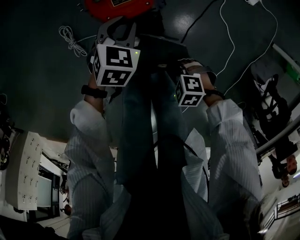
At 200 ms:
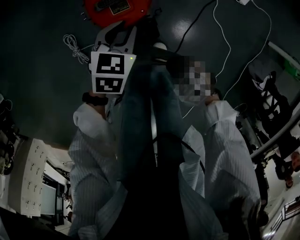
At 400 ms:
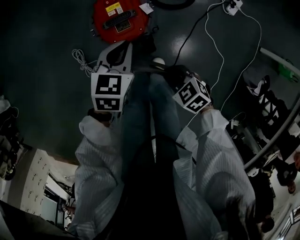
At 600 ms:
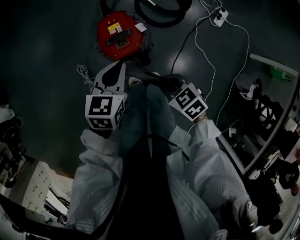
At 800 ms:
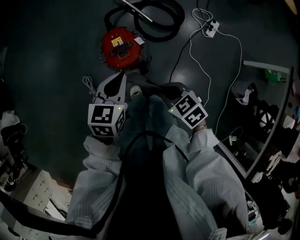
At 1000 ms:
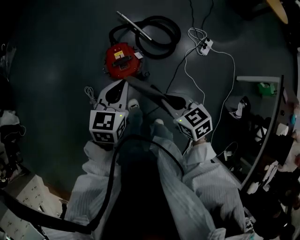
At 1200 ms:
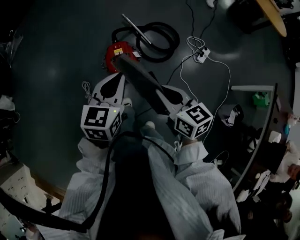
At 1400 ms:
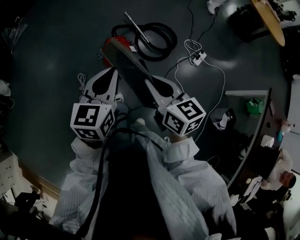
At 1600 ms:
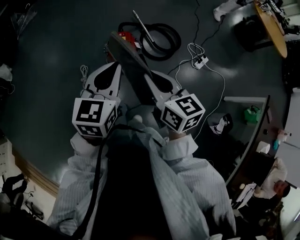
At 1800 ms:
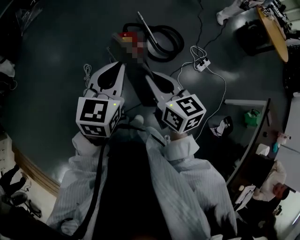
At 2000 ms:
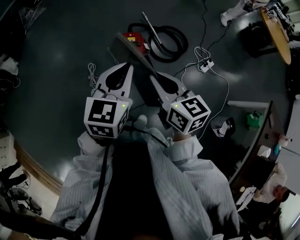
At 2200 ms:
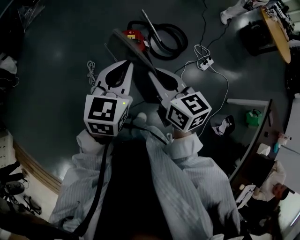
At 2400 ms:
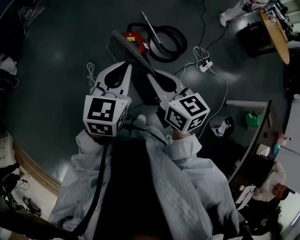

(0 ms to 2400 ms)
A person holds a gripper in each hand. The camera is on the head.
0 ms - 1200 ms: The grippers both shift upward by about 60 cm. The right gripper angles its fingers upward, by approximately 40 degrees; the left gripper points its fingers some 30 degrees further upward, and closes its fingers.
1200 ms - 2400 ms: The left gripper moves backward and upward, approximately 15 cm, while the right gripper goes roughly 15 cm upward, backward and to the left.

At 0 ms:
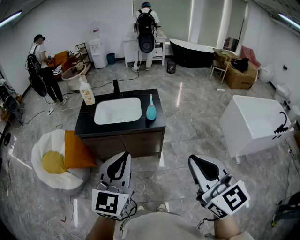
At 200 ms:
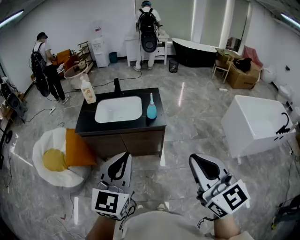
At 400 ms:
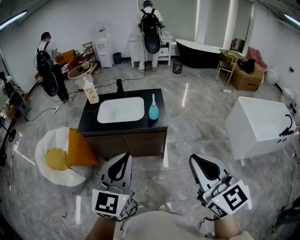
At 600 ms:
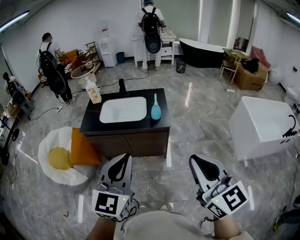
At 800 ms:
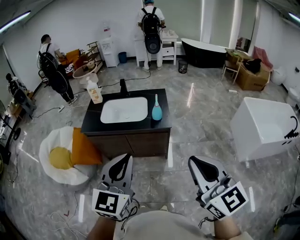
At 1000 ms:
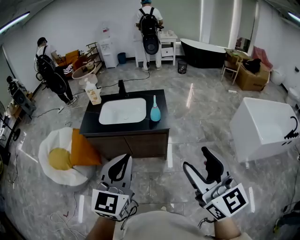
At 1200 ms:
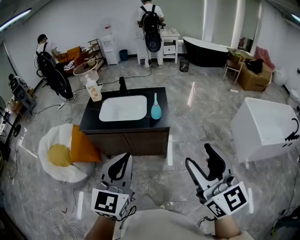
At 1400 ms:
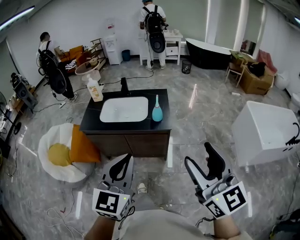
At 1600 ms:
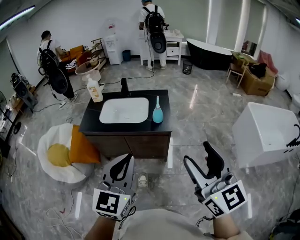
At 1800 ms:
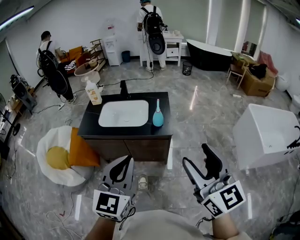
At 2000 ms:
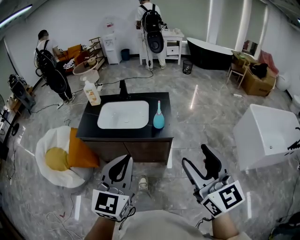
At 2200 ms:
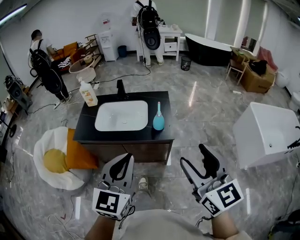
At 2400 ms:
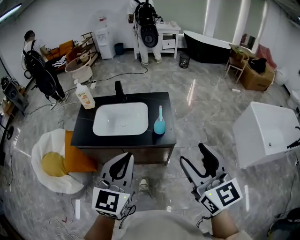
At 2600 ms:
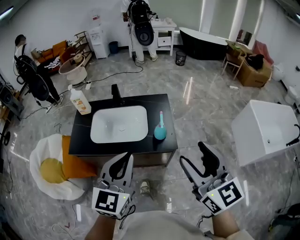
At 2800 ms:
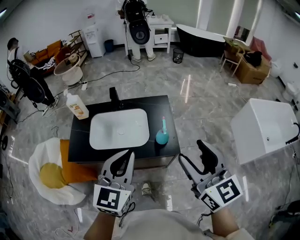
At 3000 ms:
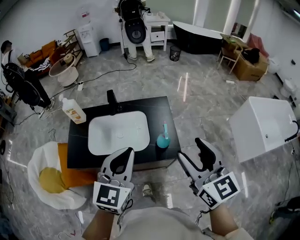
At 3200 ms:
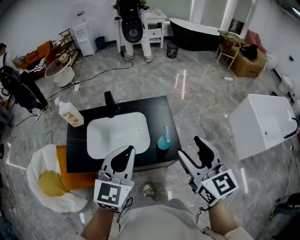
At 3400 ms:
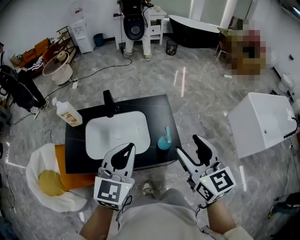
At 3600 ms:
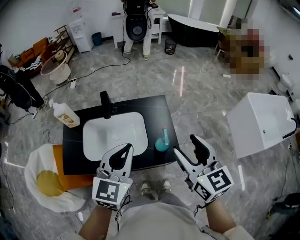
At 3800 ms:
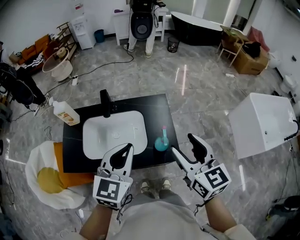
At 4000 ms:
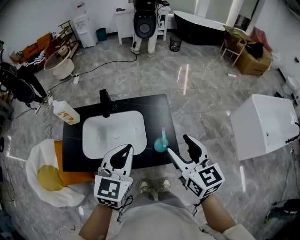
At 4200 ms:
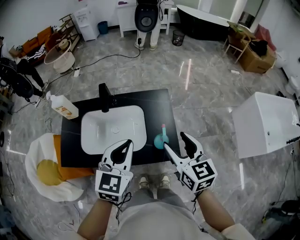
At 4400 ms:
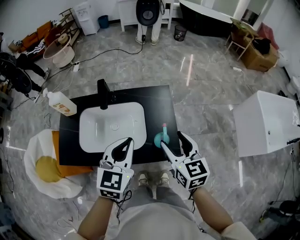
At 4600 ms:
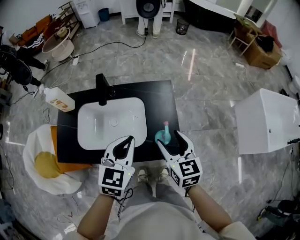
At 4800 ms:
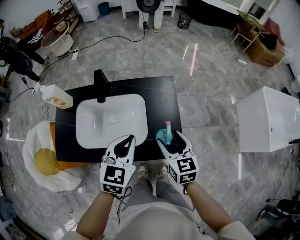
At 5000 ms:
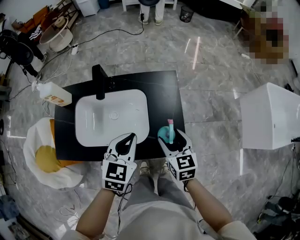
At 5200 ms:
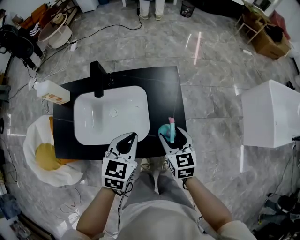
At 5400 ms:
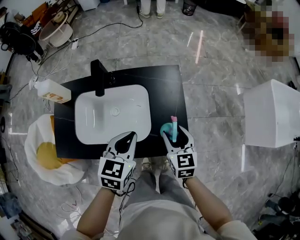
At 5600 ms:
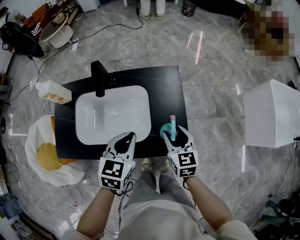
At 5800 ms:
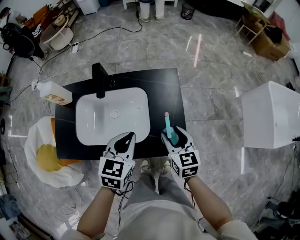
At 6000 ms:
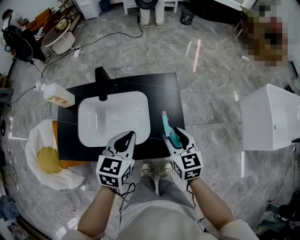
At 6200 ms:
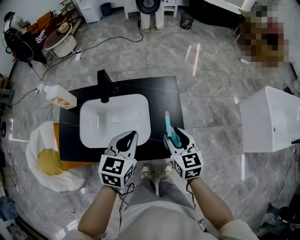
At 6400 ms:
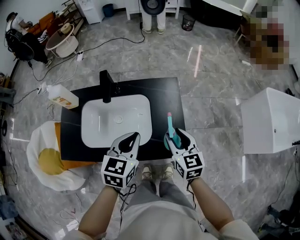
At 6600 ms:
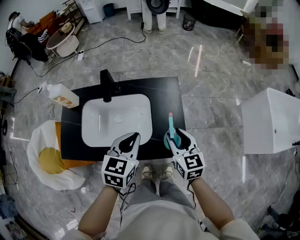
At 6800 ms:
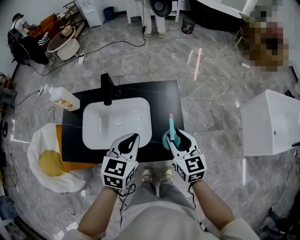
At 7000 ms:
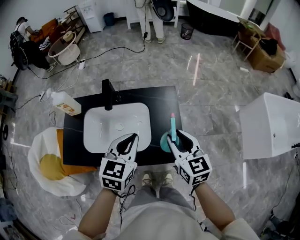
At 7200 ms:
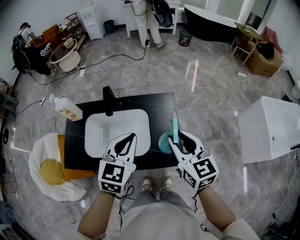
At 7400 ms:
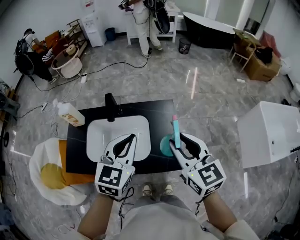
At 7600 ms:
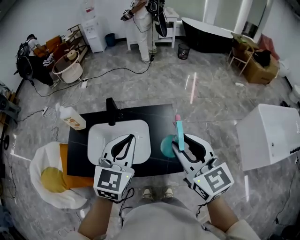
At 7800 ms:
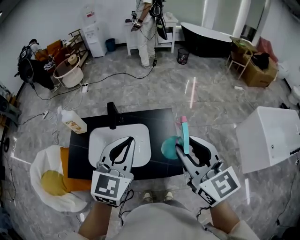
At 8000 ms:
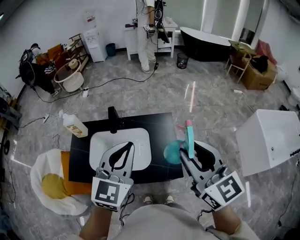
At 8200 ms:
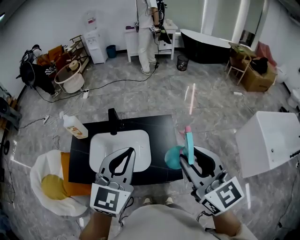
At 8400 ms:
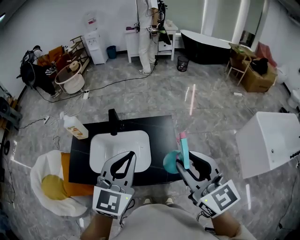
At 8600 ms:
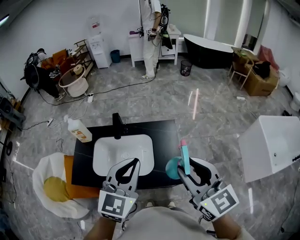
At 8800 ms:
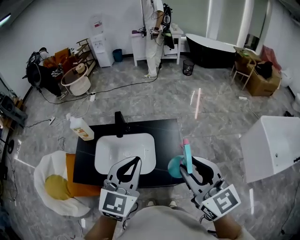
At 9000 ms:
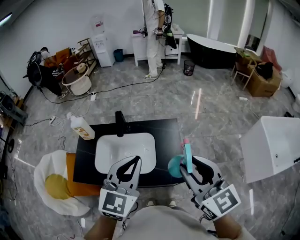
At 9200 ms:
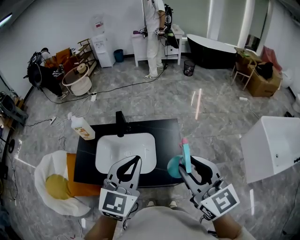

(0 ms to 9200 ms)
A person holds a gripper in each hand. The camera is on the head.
0 ms - 1600 ms: The right gripper shifts approximately 10 cm forward and to the right, and opens. The left gripper travels to the right by approximately 5 cm.
1600 ms - 3000 ms: Both grippers travel together forward, some 35 cm.
3000 ms - 4600 ms: The two grippers go roughly 20 cm downward and forward.
4600 ms - 6200 ms: The right gripper travels downward by roughly 5 cm.
6200 ms - 7600 ms: Both grippers travel together upward, some 20 cm. The left gripper changes its angle by about 20 degrees. Meanwhile the right gripper swivels approximately 20 degrees.
7600 ms - 9200 ms: Both grippers move backward, about 5 cm.

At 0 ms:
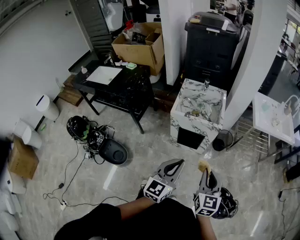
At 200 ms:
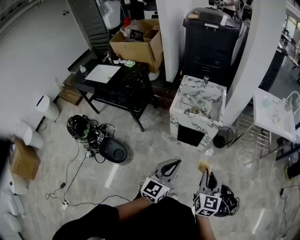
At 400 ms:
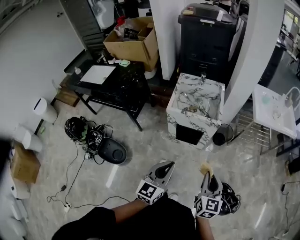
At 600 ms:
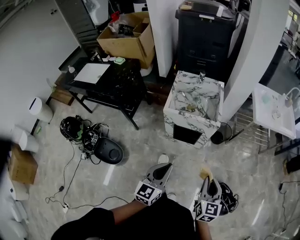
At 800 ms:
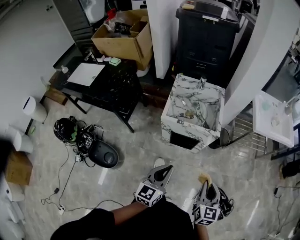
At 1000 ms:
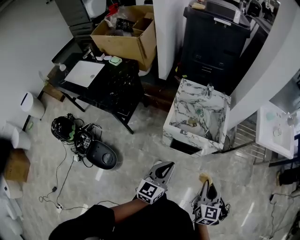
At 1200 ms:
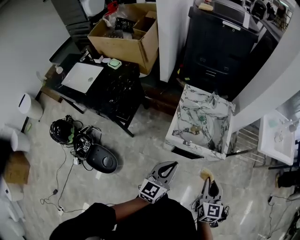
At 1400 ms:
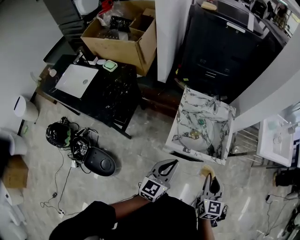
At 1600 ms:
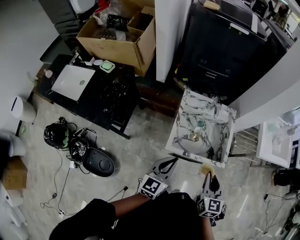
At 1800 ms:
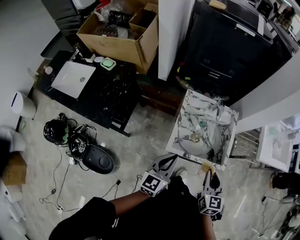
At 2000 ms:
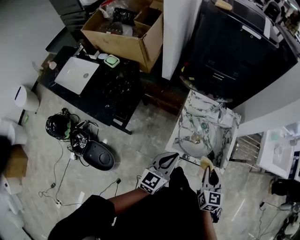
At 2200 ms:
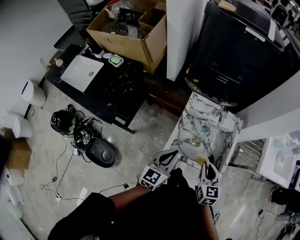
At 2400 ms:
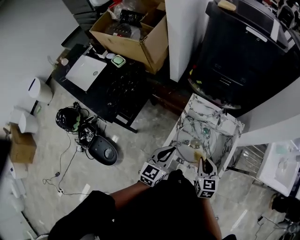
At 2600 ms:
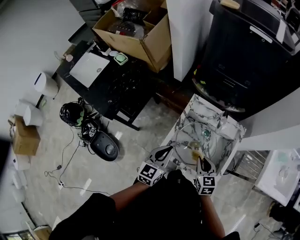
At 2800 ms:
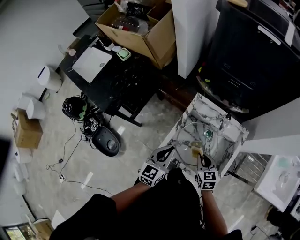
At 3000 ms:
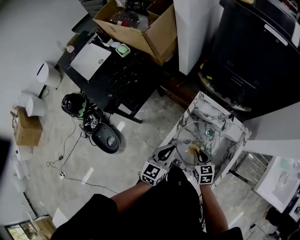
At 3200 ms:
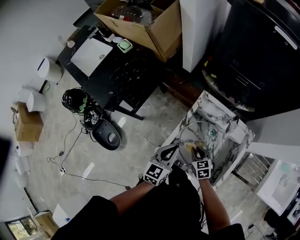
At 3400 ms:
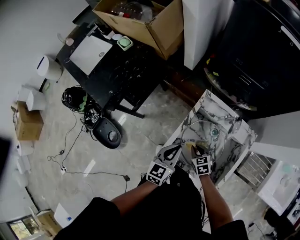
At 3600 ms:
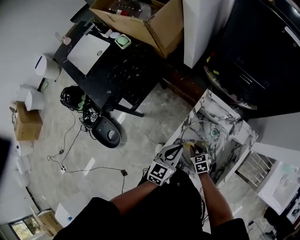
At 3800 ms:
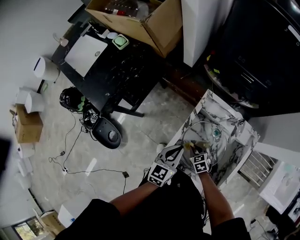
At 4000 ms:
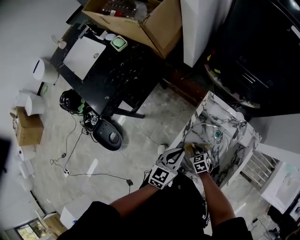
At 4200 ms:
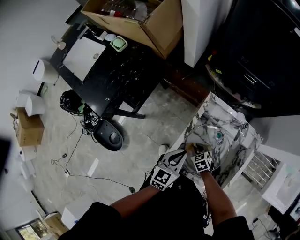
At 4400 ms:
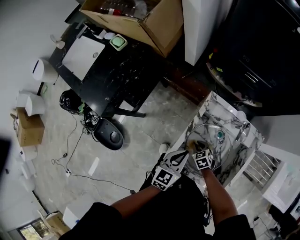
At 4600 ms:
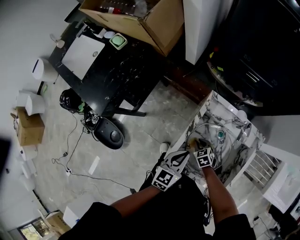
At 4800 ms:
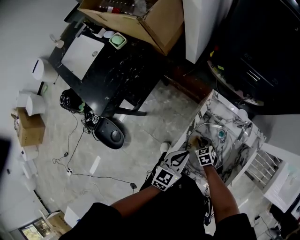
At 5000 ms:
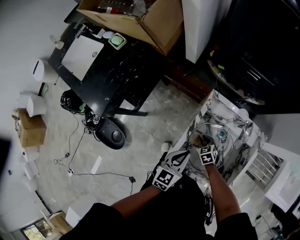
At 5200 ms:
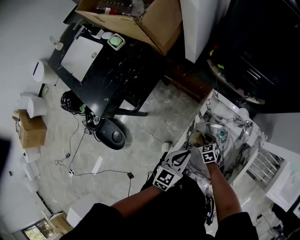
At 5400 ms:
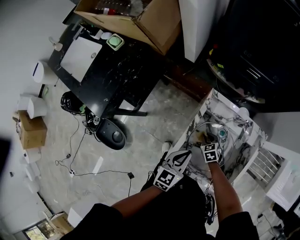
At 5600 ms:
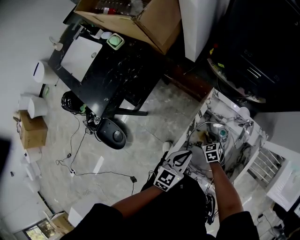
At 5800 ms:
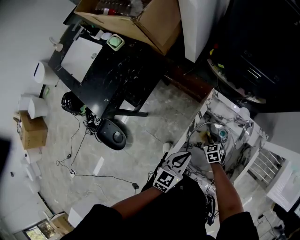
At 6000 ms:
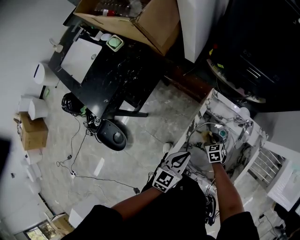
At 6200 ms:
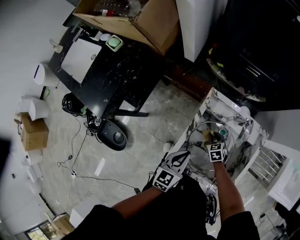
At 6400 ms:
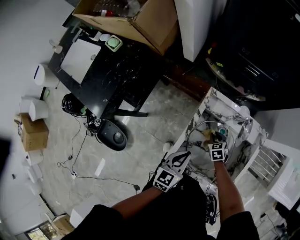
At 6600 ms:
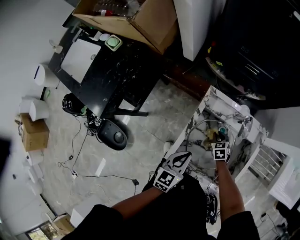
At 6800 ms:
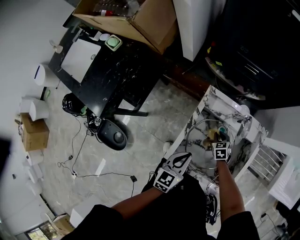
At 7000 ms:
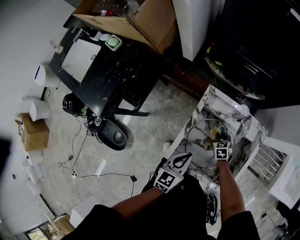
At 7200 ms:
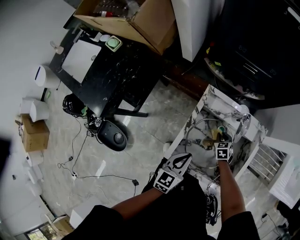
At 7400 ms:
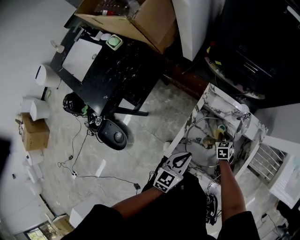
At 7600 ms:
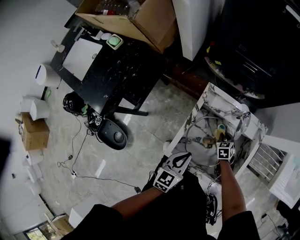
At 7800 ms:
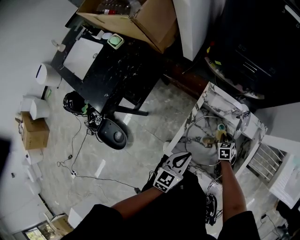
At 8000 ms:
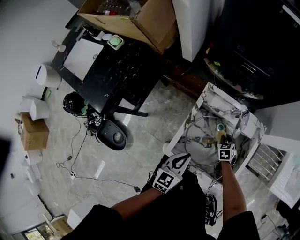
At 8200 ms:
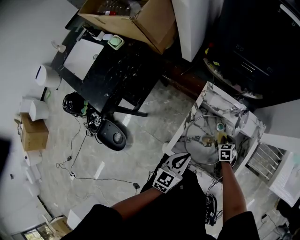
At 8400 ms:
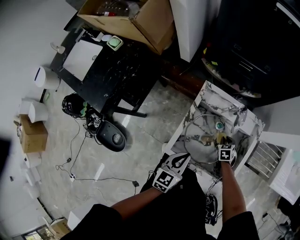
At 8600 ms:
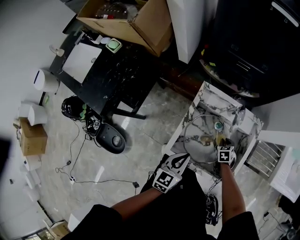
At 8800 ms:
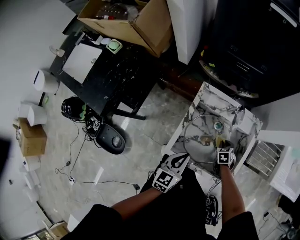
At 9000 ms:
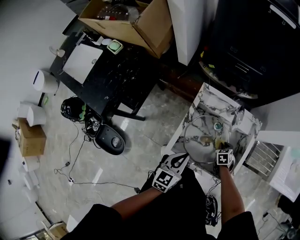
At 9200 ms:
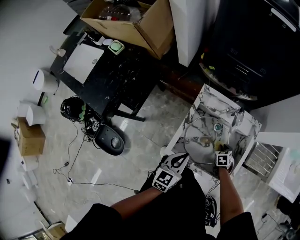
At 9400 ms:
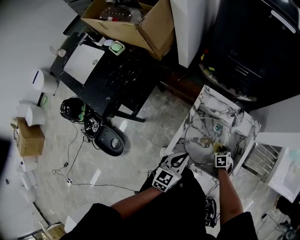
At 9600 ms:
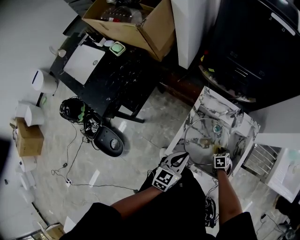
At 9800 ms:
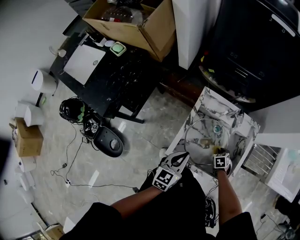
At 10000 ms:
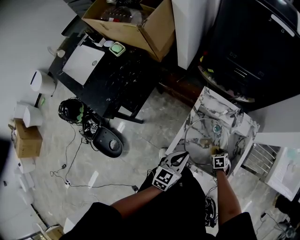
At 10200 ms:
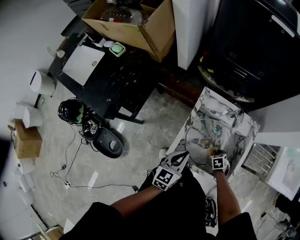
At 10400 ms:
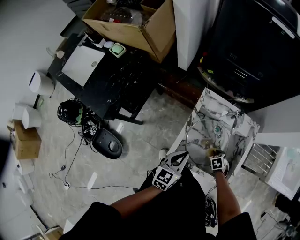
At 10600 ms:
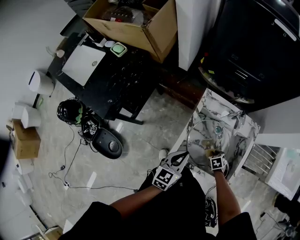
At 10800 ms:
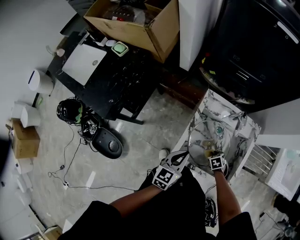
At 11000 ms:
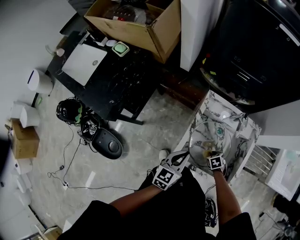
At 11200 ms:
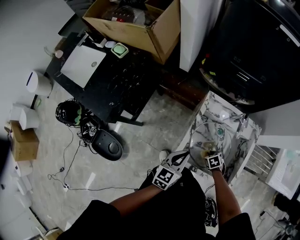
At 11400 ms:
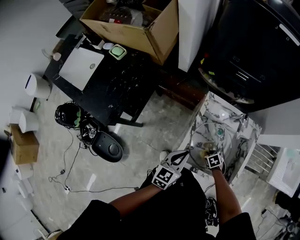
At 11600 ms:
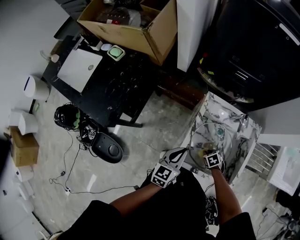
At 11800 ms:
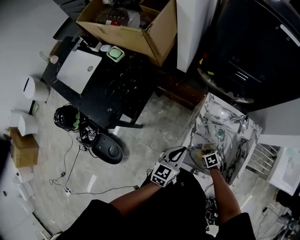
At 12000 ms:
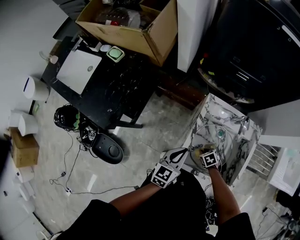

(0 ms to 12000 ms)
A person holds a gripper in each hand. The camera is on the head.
0 ms - 1600 ms: The right gripper shifts roughly 35 cm forward; the left gripper goes roughly 40 cm forward and to the left.
1600 ms - 3000 ms: The right gripper goes about 20 cm downward, and swivels roughly 40 degrees, while the left gripper shifts by about 15 cm, and swivels about 20 degrees.
3000 ms - 4400 ms: The right gripper heads downward, covering roughly 15 cm, and rotates about 30 degrees. The left gripper travels downward by about 5 cm.
4400 ms - 6000 ms: The right gripper moves to the right and forward, about 10 cm.
6000 ms - 7600 ms: The right gripper goes roughly 10 cm to the right.
7600 ms - 9000 ms: The right gripper heads backward and to the right, covering some 10 cm.
9000 ms - 10400 ms: The right gripper changes place by approximately 5 cm.
10400 ms - 12000 ms: The right gripper changes place by about 15 cm; the left gripper ends up approximately 5 cm from where it was.
